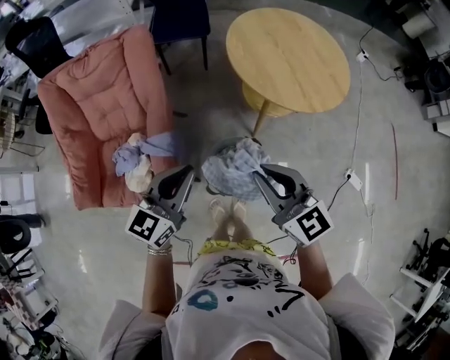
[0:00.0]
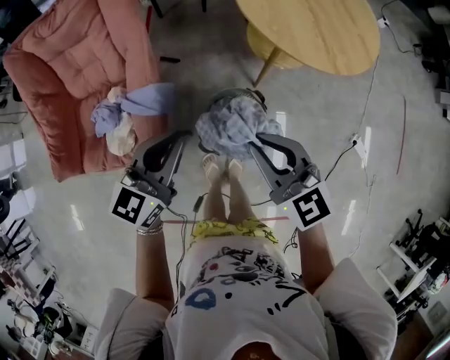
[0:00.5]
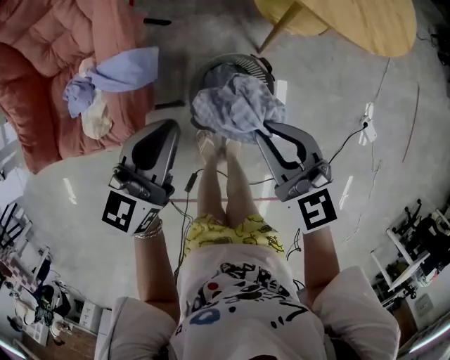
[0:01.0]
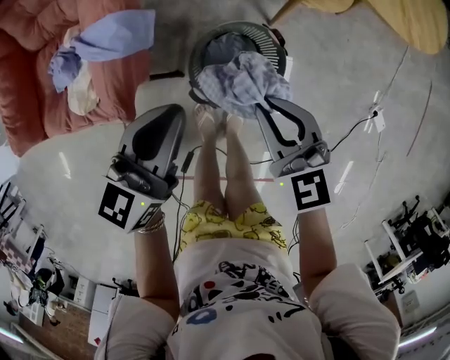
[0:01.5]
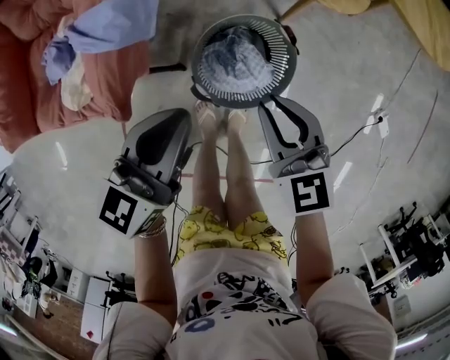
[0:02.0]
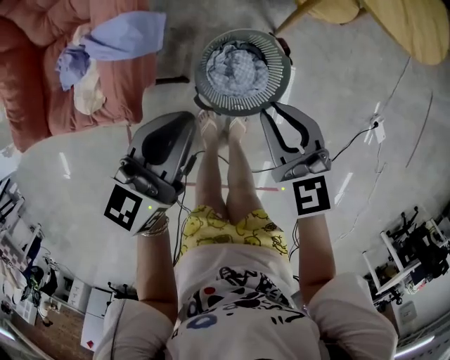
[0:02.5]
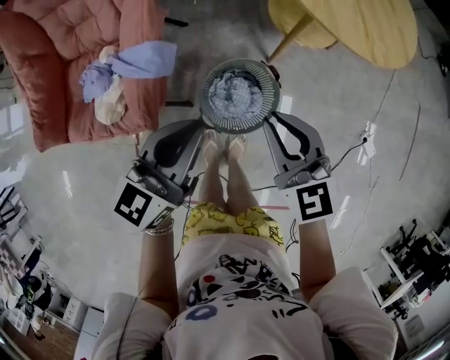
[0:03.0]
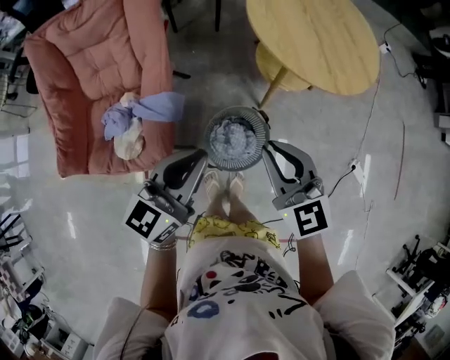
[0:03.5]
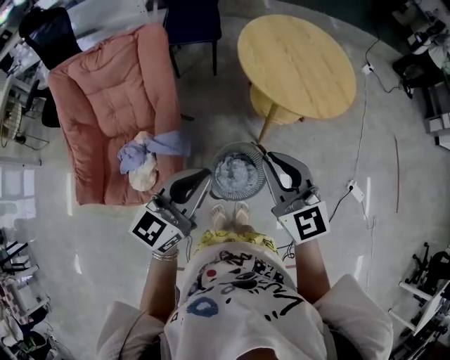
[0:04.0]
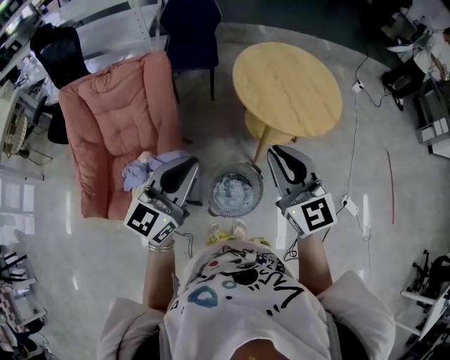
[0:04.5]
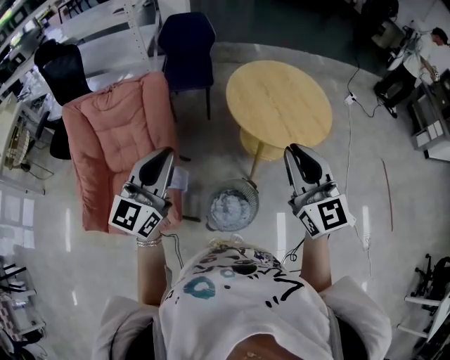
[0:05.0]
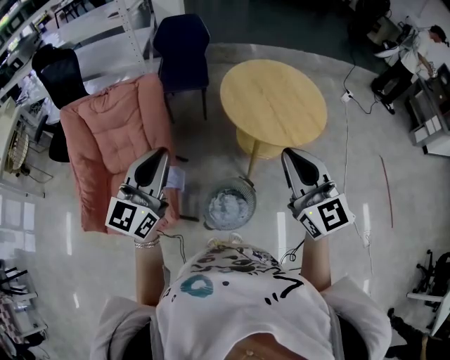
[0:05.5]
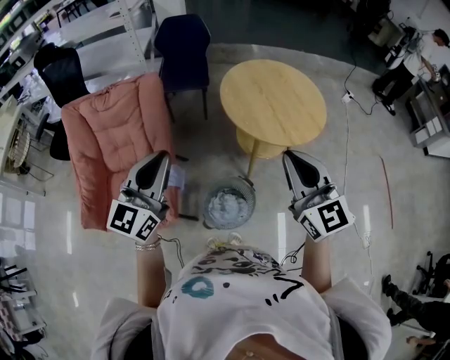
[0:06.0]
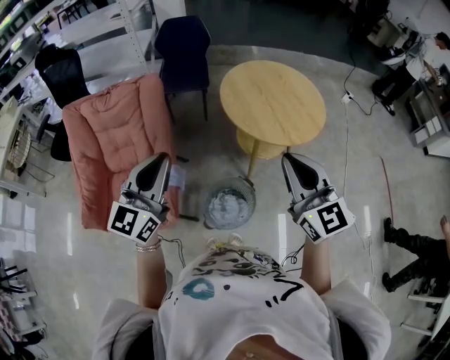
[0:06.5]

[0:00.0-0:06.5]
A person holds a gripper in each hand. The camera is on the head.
0:00.0 to 0:02.0: Both grippers travel together downward, some 30 cm.
0:02.0 to 0:04.5: Both grippers move upward, approximately 40 cm. The left gripper swivels about 30 degrees; the right gripper turns by some 30 degrees.
0:04.5 to 0:06.5: The left gripper shifts approximately 5 cm upward. Meanwhile the right gripper travels to the right and upward by roughly 10 cm.

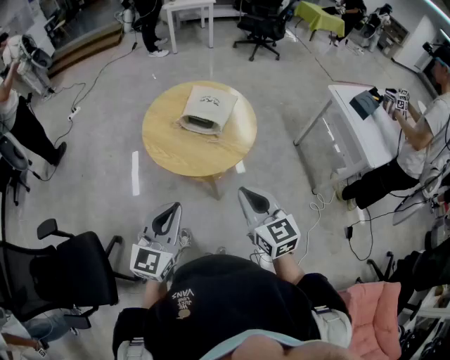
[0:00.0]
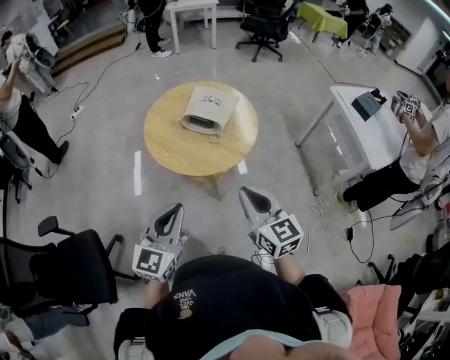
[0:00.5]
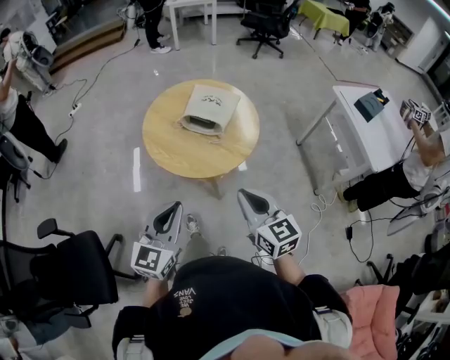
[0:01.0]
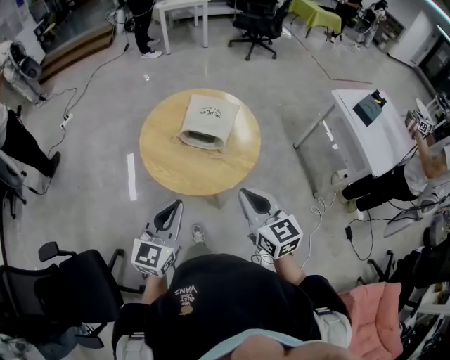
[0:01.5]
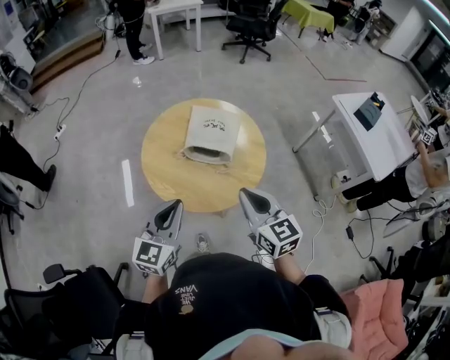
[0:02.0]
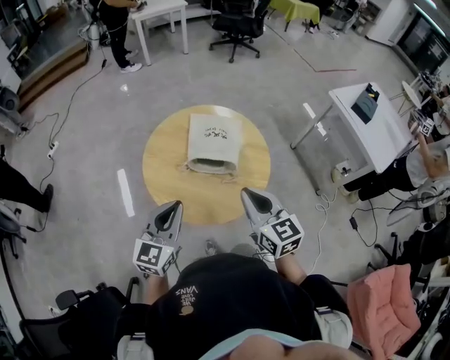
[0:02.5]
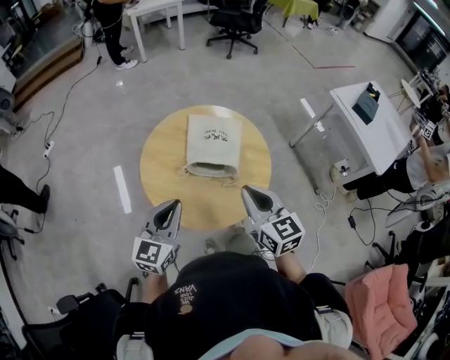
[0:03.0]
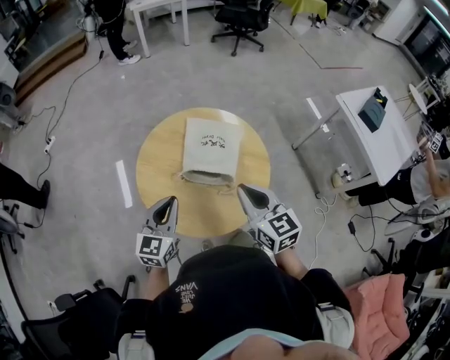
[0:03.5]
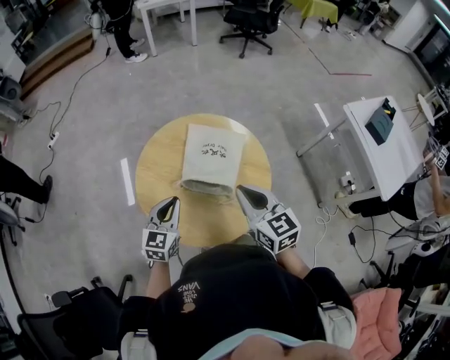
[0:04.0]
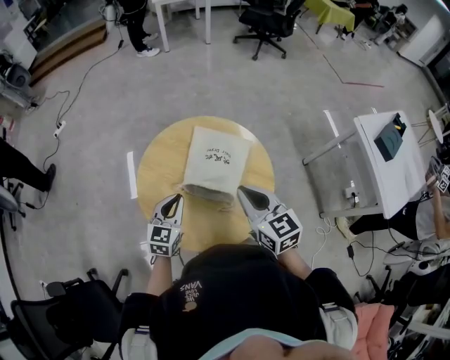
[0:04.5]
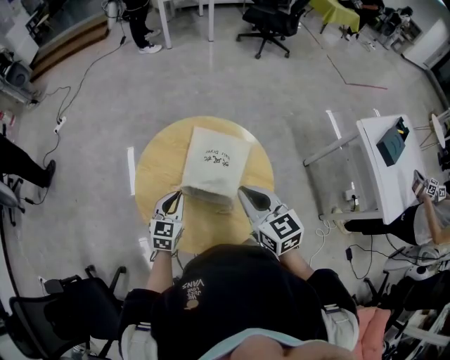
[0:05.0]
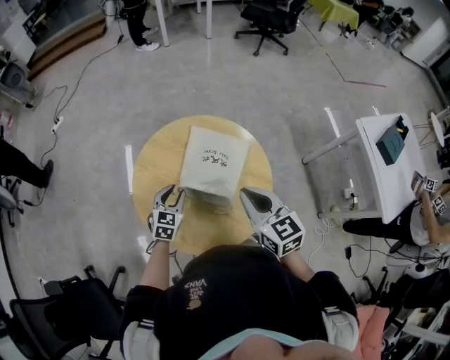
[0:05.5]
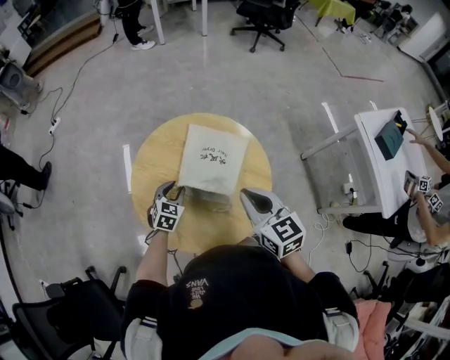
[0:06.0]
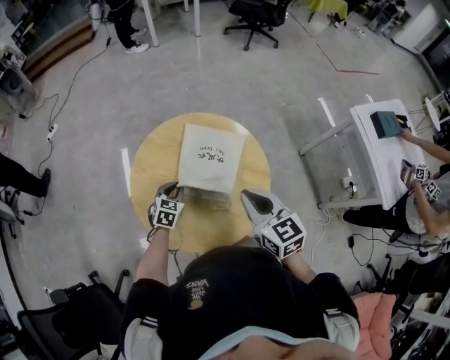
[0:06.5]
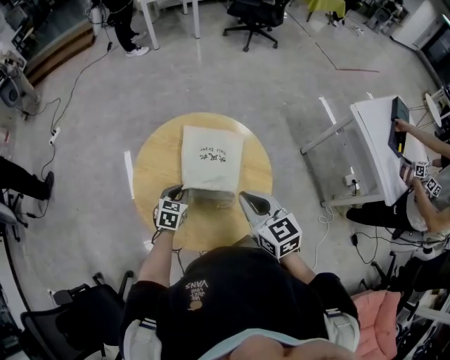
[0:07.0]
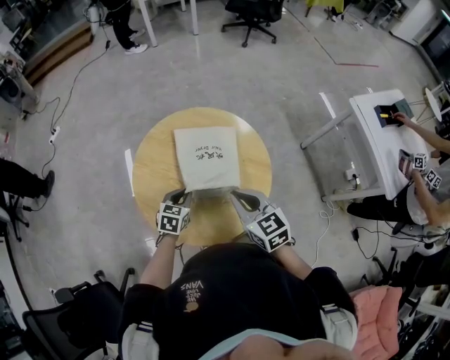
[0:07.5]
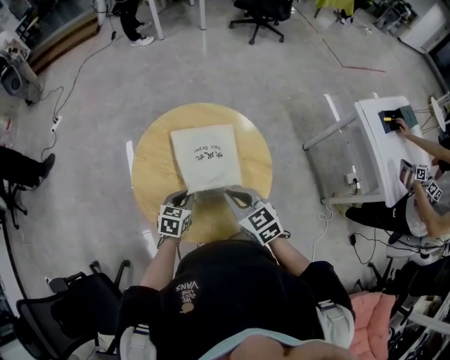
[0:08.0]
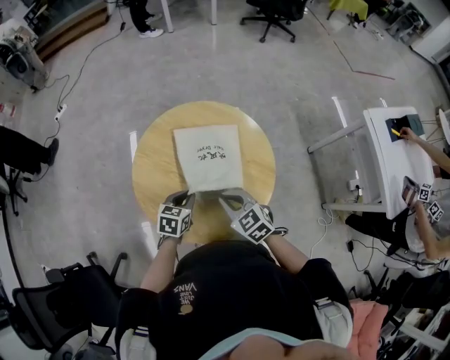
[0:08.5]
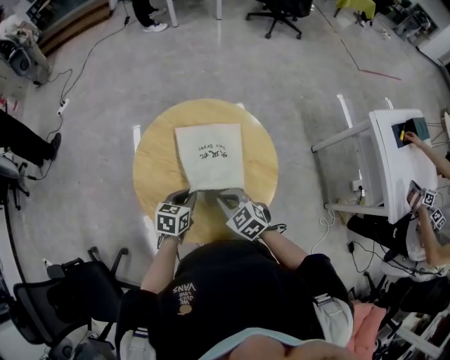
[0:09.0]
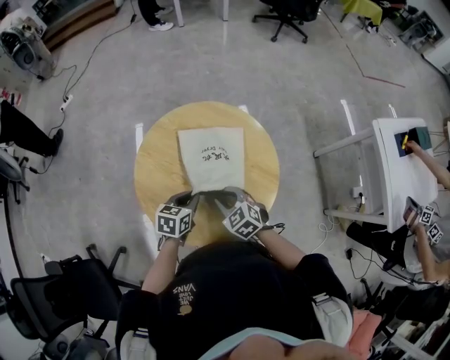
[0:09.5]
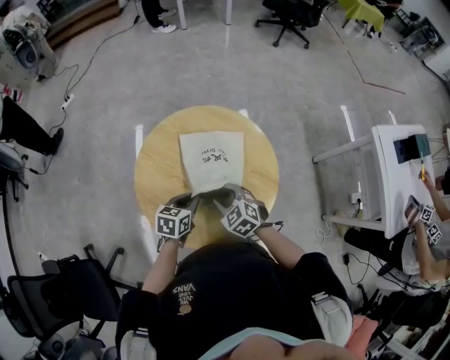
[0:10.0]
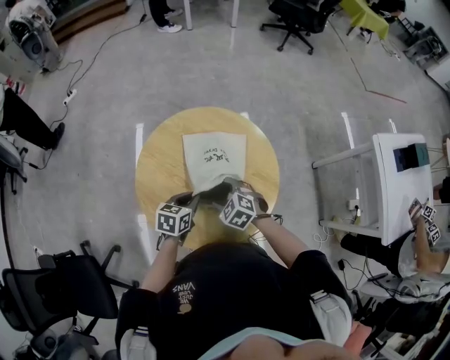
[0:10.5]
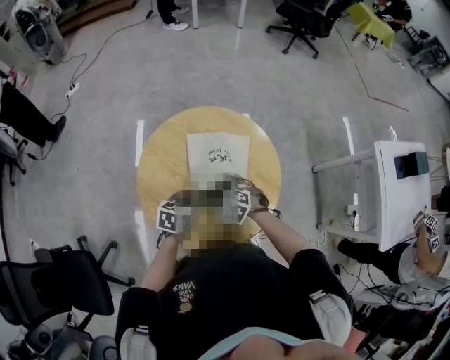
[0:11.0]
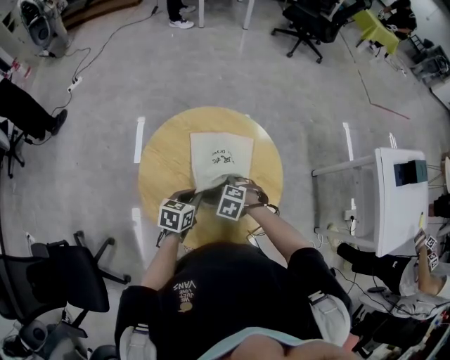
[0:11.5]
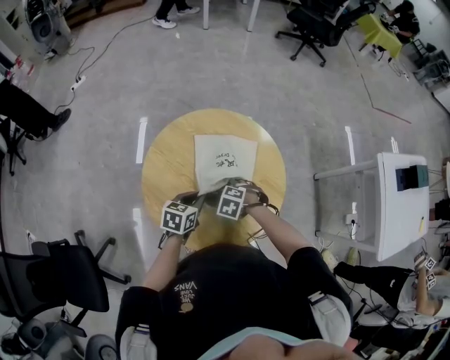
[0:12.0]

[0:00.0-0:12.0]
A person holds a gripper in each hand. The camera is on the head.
0:00.0 to 0:02.0: Both grippers travel together forward, roughly 20 cm.
0:02.0 to 0:04.0: The left gripper shifts about 25 cm forward and downward. Meanwhile the right gripper goes about 20 cm forward.
0:04.0 to 0:06.0: The right gripper moves approximately 5 cm. The left gripper shifts approximately 20 cm downward and forward, rotates about 20 degrees, and opens.
0:06.0 to 0:08.0: The right gripper is displaced downward by approximately 10 cm; the left gripper moves backward, about 5 cm.
0:08.0 to 0:10.0: The right gripper goes roughly 10 cm downward, turns by roughly 30 degrees, and opens its fingers.
0:10.0 to 0:12.0: The right gripper moves downward, some 10 cm, tips its fingers downward by some 30 degrees, and opens its fingers.

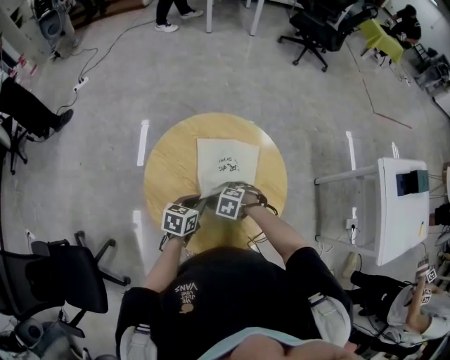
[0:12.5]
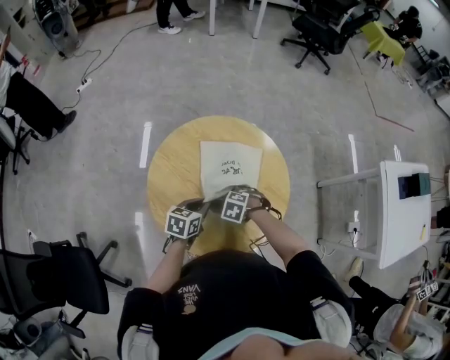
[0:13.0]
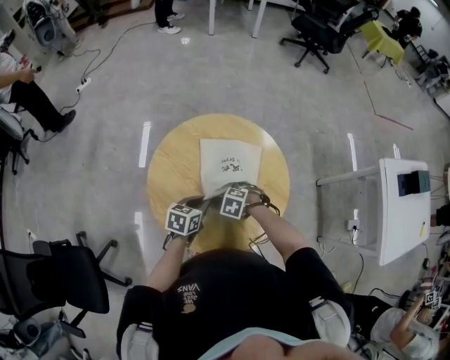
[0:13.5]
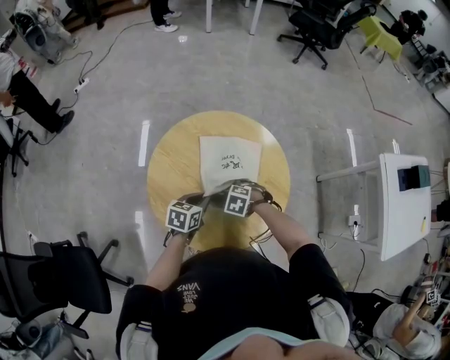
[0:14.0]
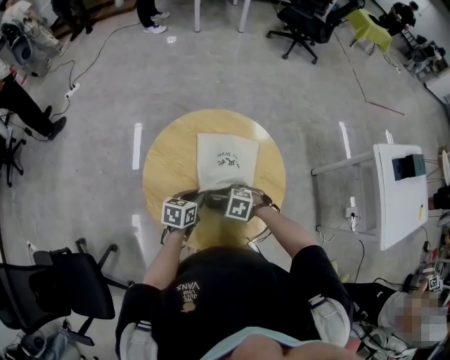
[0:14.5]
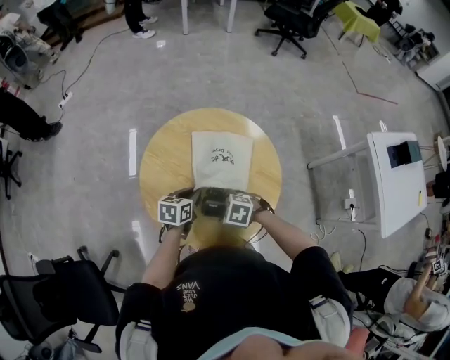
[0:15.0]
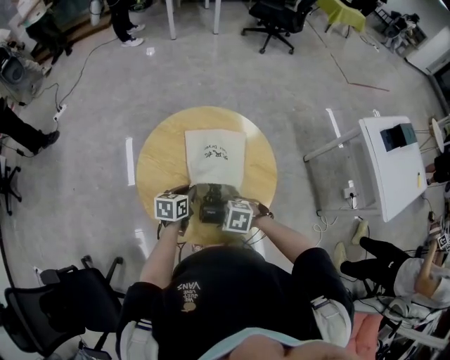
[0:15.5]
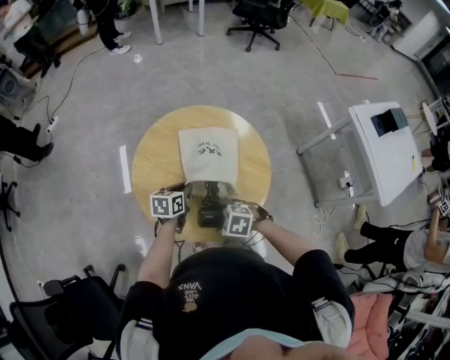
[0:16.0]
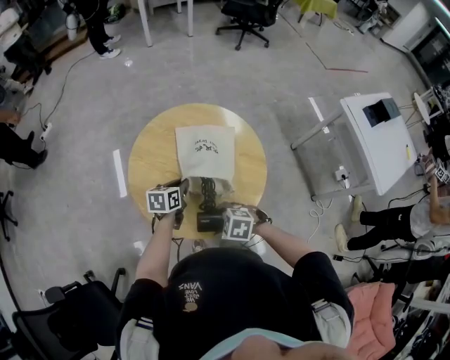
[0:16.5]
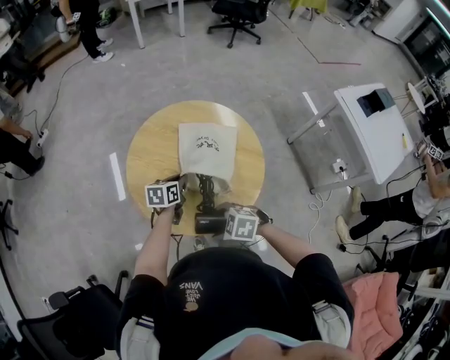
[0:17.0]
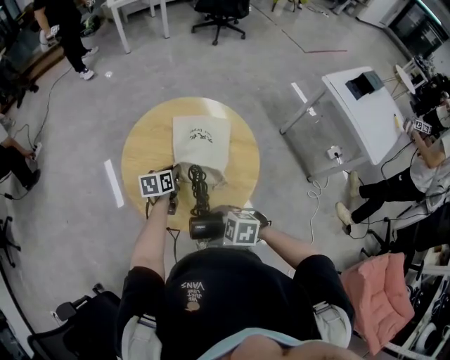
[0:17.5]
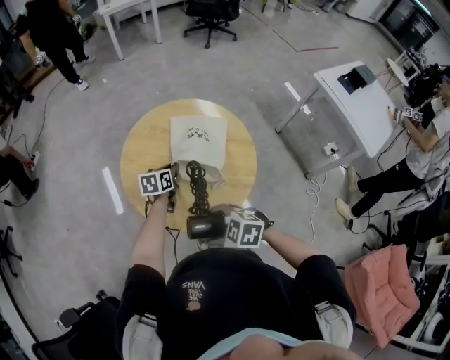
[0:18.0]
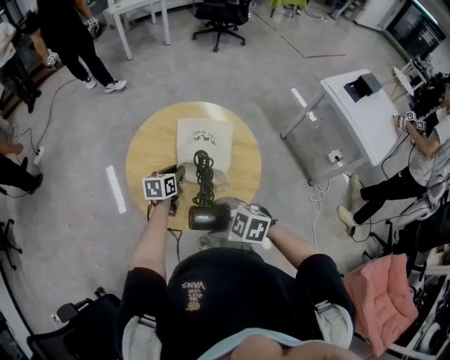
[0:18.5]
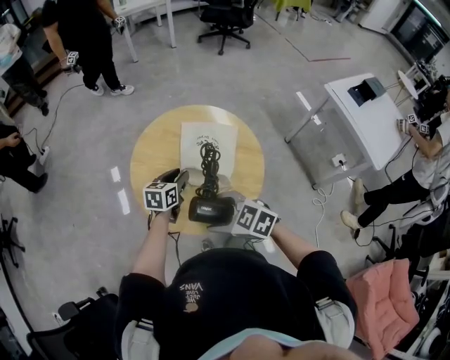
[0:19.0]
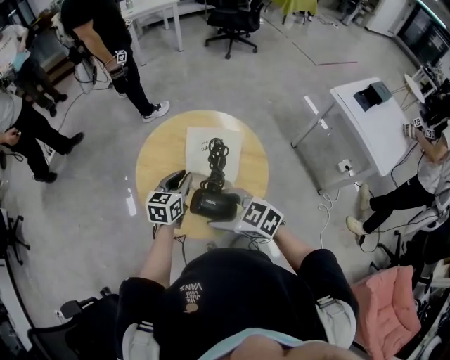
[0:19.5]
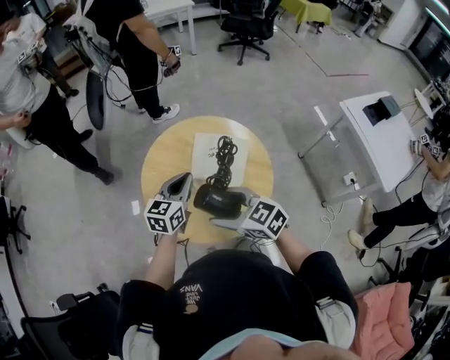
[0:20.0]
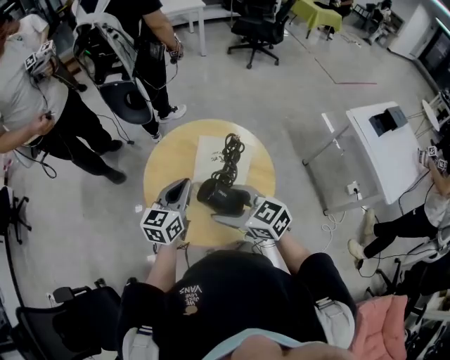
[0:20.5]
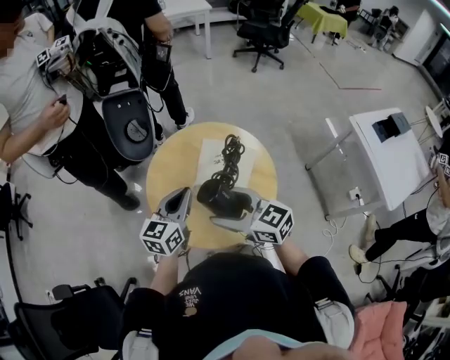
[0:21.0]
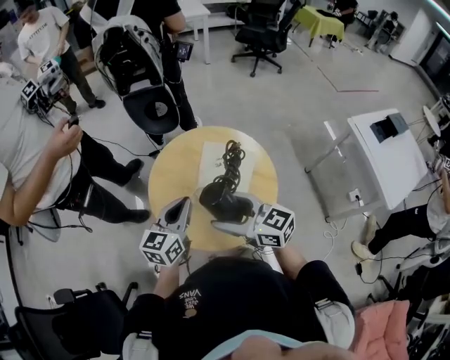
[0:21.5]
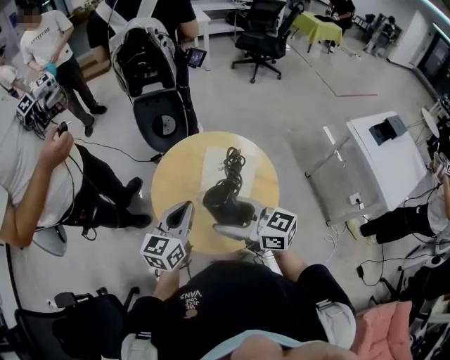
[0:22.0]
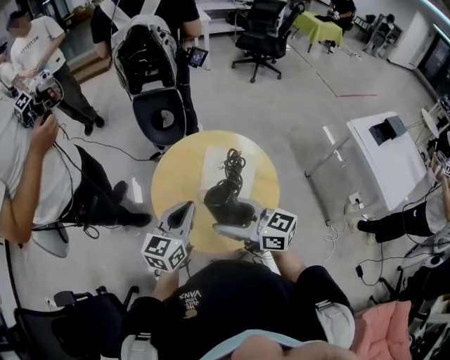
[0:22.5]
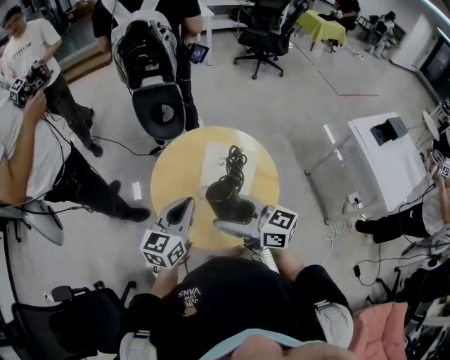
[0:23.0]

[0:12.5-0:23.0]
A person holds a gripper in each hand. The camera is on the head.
0:12.5 to 0:14.5: The grippers stay close to where they were, moving slightly.
0:14.5 to 0:16.5: The right gripper changes place by about 15 cm.
0:16.5 to 0:19.0: The left gripper opens. The right gripper heads upward, covering some 15 cm, and swivels roughly 30 degrees.
0:19.0 to 0:21.0: The right gripper is displaced upward and forward by some 10 cm, and turns by some 30 degrees; the left gripper is displaced upward by about 15 cm, changes its angle by about 30 degrees, and closes its fingers.
0:21.0 to 0:23.0: The left gripper moves roughly 5 cm.
